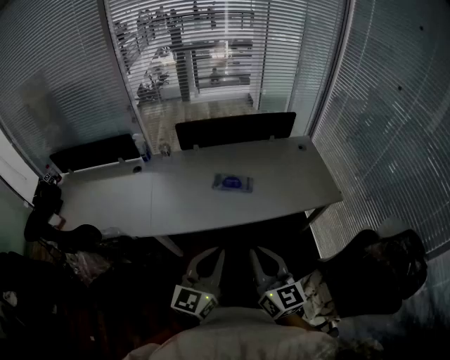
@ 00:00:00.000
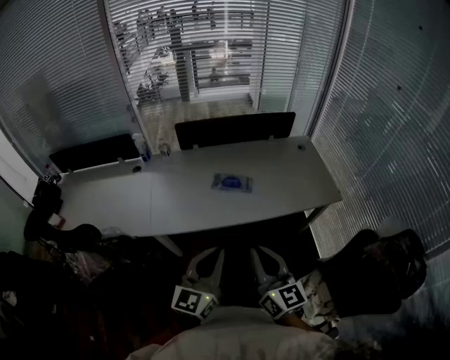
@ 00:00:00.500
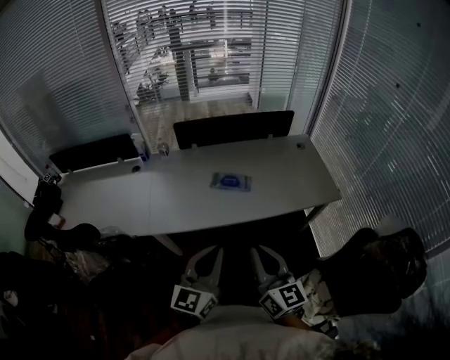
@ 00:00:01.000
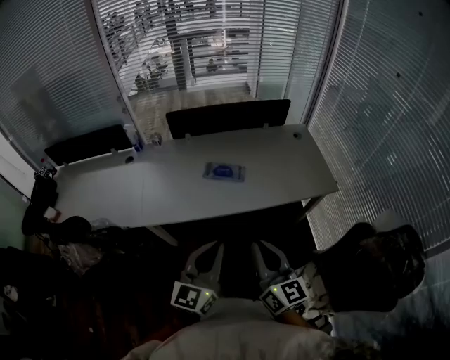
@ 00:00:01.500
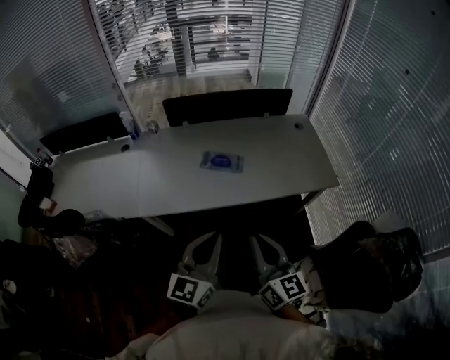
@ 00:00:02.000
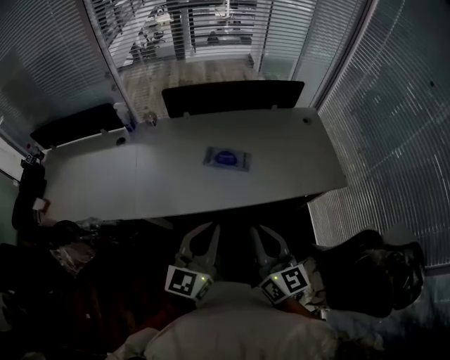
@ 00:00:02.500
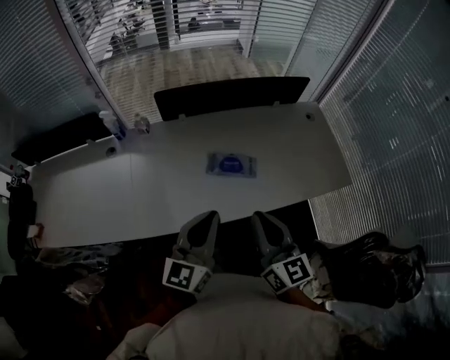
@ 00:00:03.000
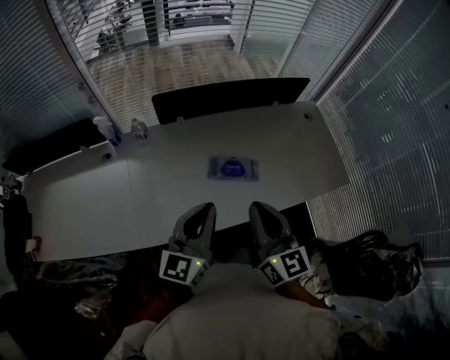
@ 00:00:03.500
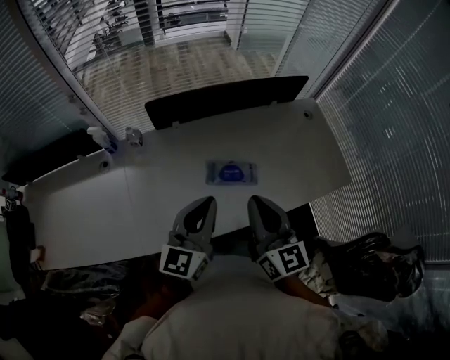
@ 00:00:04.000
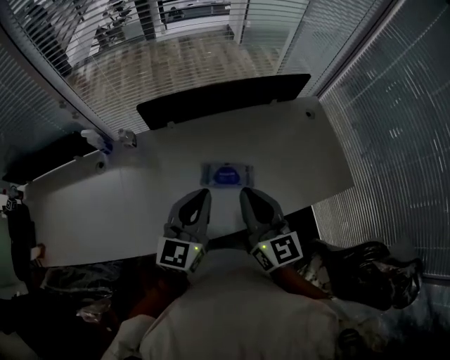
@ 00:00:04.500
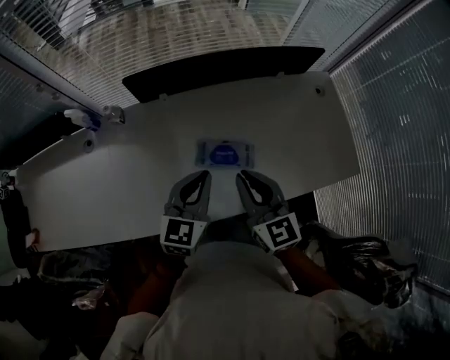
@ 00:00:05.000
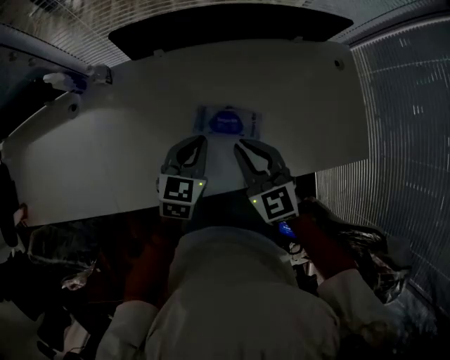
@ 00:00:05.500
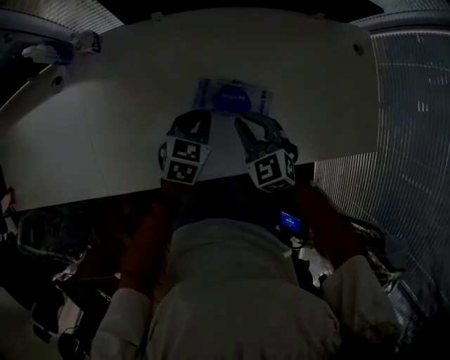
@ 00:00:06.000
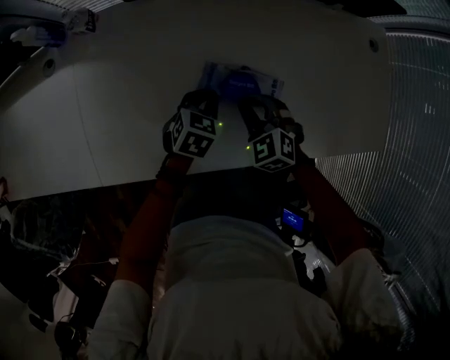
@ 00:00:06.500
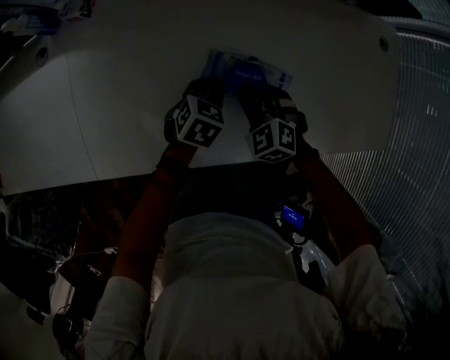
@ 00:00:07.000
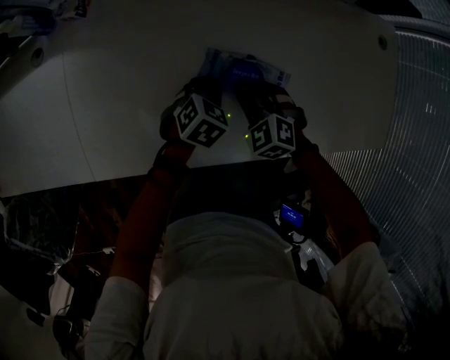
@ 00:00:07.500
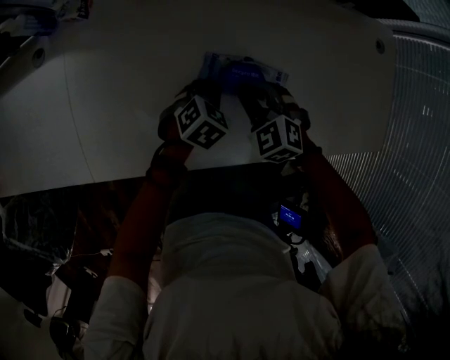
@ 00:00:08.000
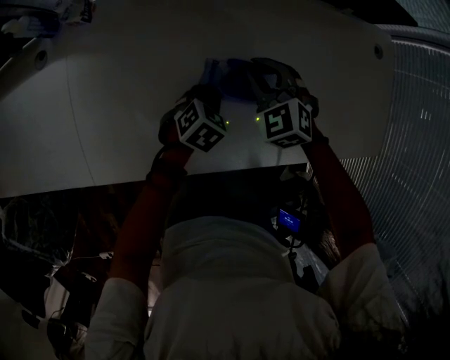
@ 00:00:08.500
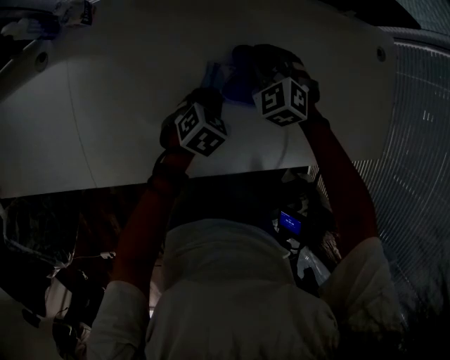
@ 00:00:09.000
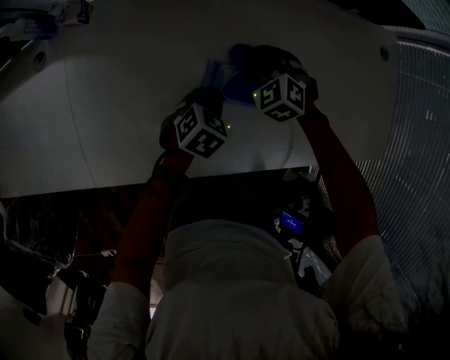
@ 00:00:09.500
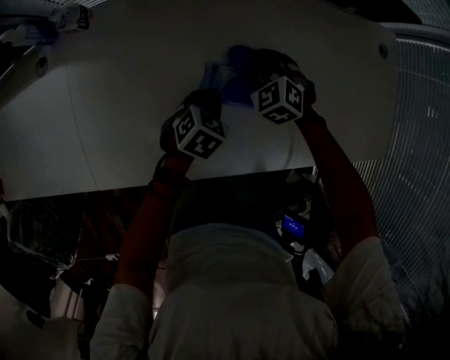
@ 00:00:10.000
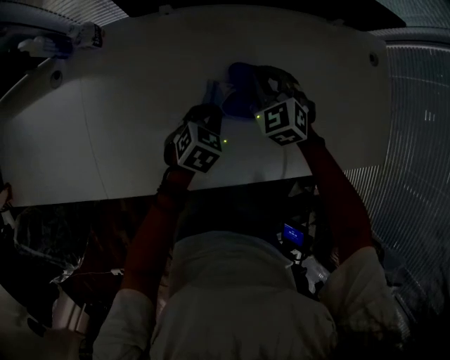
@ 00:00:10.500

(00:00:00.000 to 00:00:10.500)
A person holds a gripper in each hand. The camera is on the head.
00:00:00.000 - 00:00:02.000: The grippers both shift to the right by some 5 cm.
00:00:02.000 - 00:00:04.000: Both grippers move forward and to the left, about 30 cm.
00:00:04.000 - 00:00:06.500: Both grippers move downward, roughly 40 cm. The right gripper points its fingers about 50 degrees further downward; the left gripper points its fingers some 50 degrees further downward.
00:00:06.500 - 00:00:08.500: The right gripper is displaced forward by approximately 10 cm.

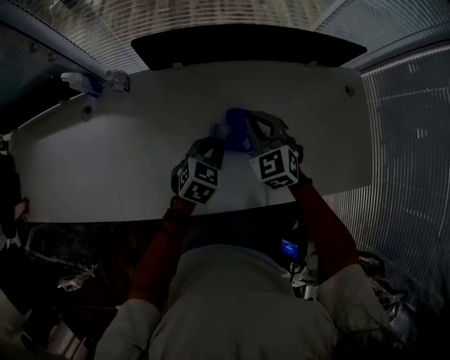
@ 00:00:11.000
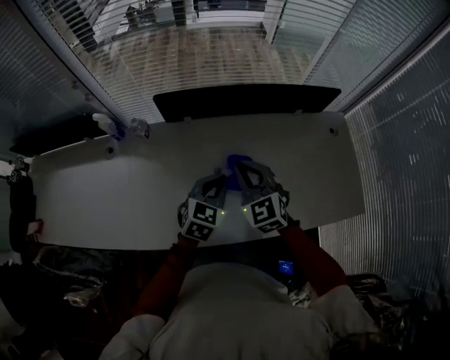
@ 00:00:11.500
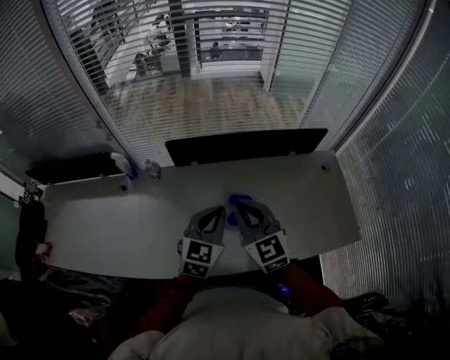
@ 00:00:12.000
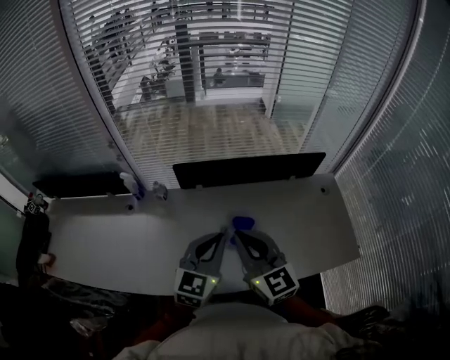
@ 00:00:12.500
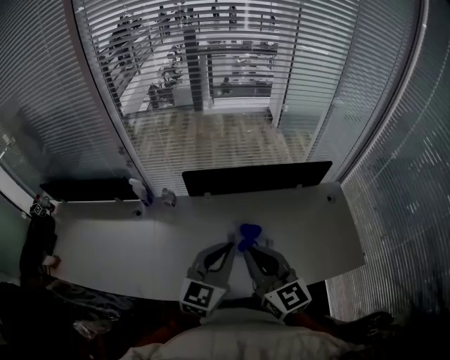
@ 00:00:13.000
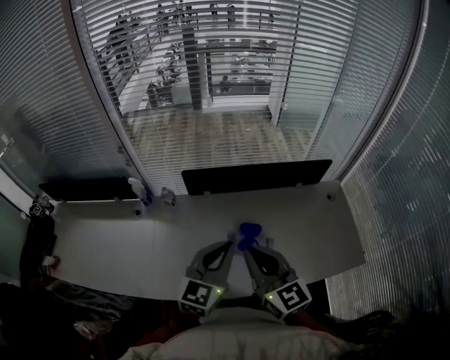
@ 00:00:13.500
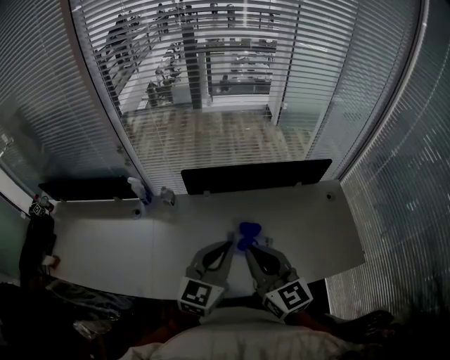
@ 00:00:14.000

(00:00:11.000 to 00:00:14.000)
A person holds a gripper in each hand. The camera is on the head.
00:00:11.000 - 00:00:12.500: The left gripper shifts roughly 30 cm upward, and rotates about 30 degrees; the right gripper shifts roughly 30 cm upward and backward, and swivels approximately 40 degrees.
00:00:12.500 - 00:00:14.000: The grippers move only a little.

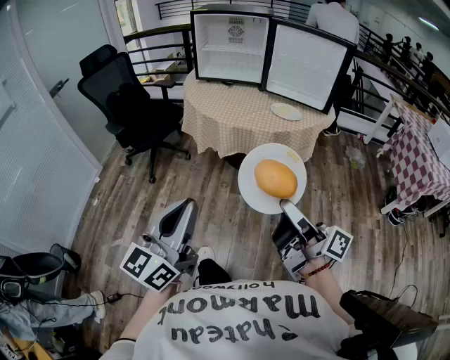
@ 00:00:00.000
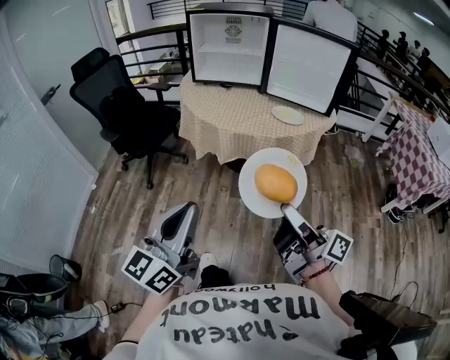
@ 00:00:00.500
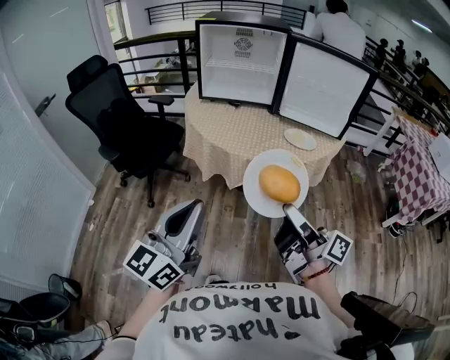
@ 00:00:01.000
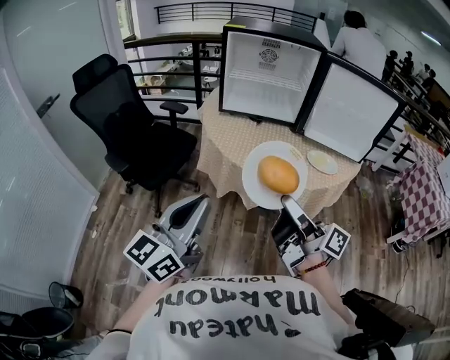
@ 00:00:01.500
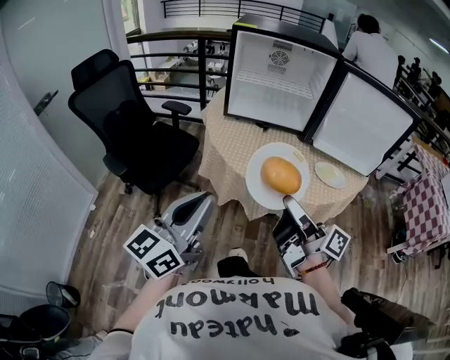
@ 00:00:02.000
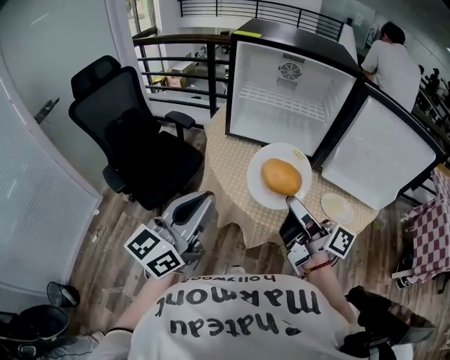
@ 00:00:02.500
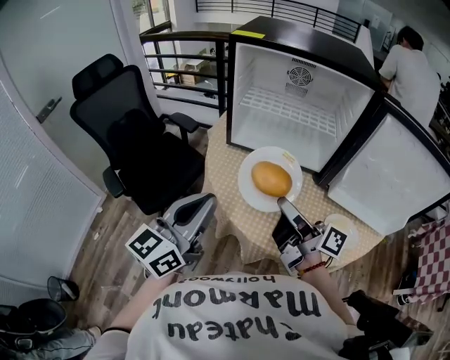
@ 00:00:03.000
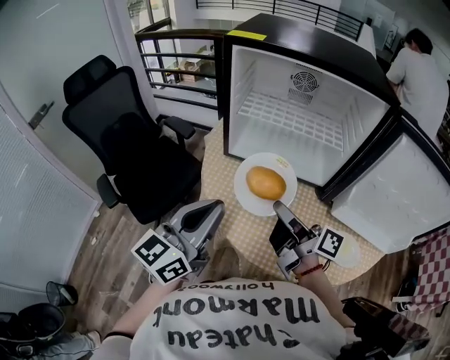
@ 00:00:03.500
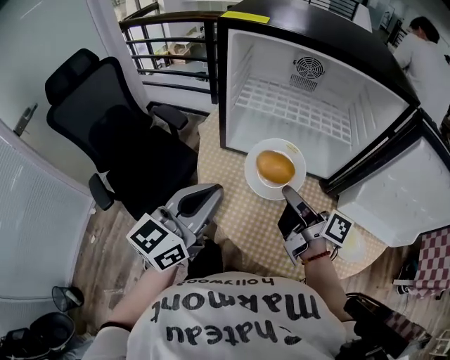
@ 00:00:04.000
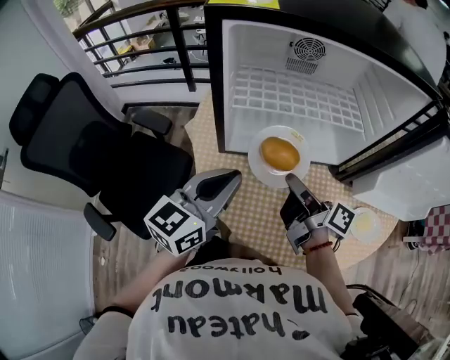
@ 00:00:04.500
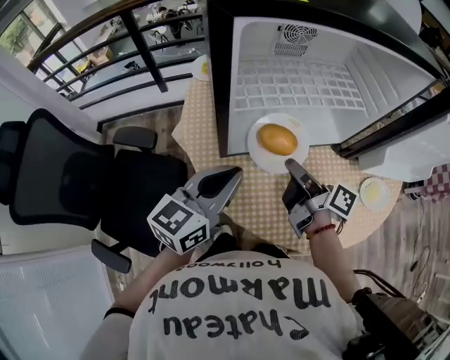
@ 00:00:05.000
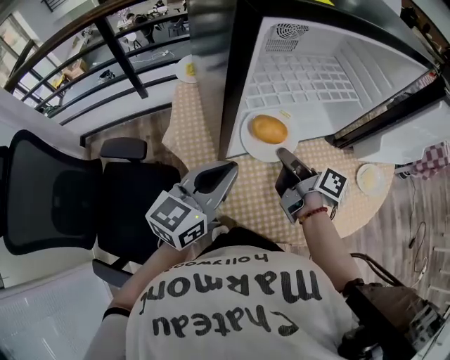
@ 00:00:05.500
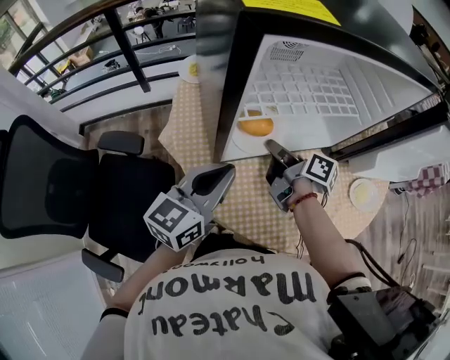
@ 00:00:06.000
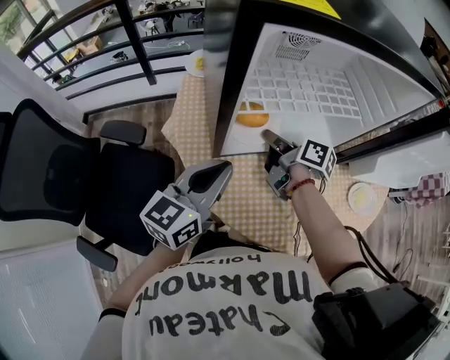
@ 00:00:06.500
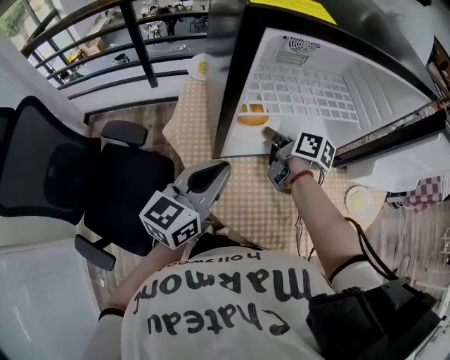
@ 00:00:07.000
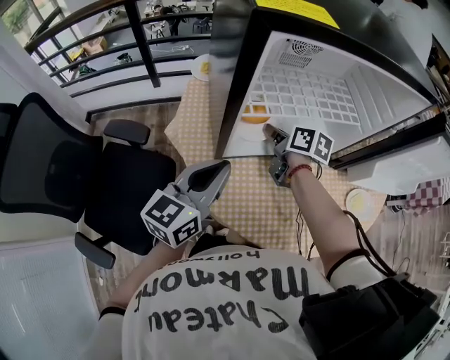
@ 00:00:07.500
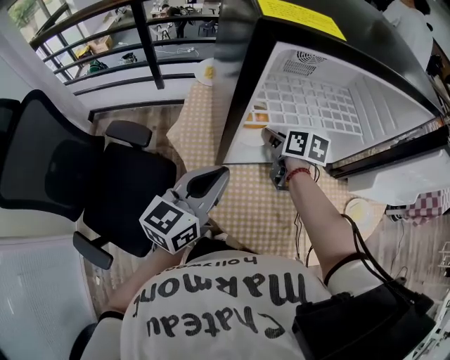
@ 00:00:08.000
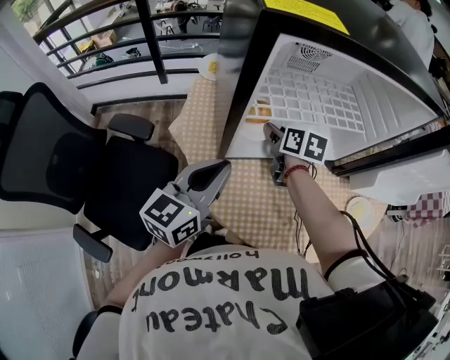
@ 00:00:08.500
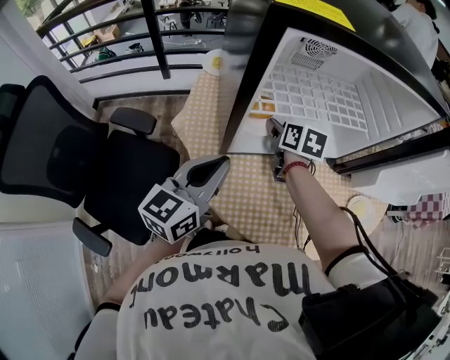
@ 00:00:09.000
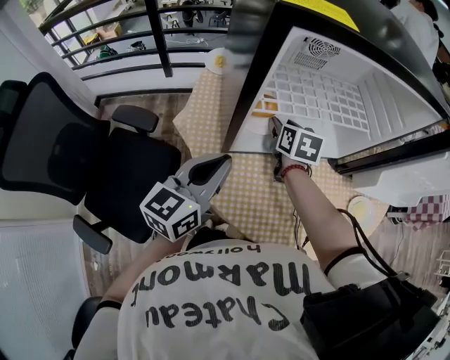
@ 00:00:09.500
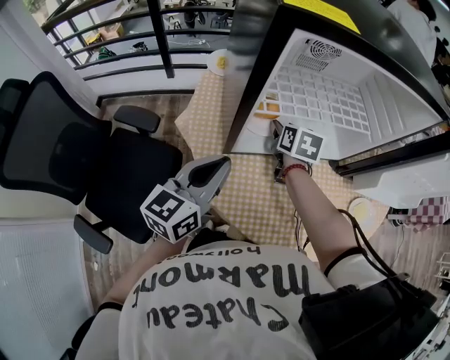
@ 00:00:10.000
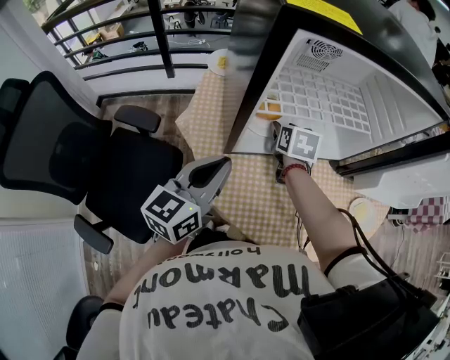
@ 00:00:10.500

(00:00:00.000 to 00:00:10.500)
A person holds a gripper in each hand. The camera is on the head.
00:00:00.000 - 00:00:02.000: The grippers both shift forward and to the left by approximately 40 cm.
00:00:02.000 - 00:00:04.000: The grippers both shift forward by some 35 cm.
00:00:04.000 - 00:00:06.500: The right gripper changes place by about 20 cm, and rotates approximately 30 degrees. Meanwhile the left gripper ends up some 20 cm from where it was, and turns by approximately 30 degrees.
00:00:06.500 - 00:00:08.500: The right gripper rotates approximately 40 degrees, and opens its fingers.
00:00:08.500 - 00:00:10.500: There are only small adjustments of the grippers.

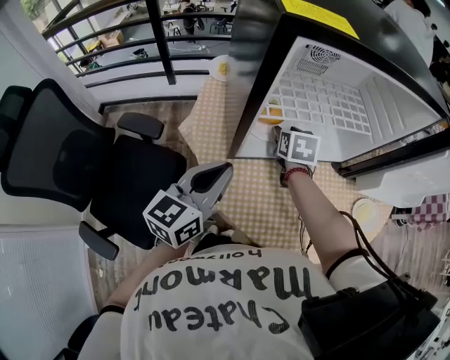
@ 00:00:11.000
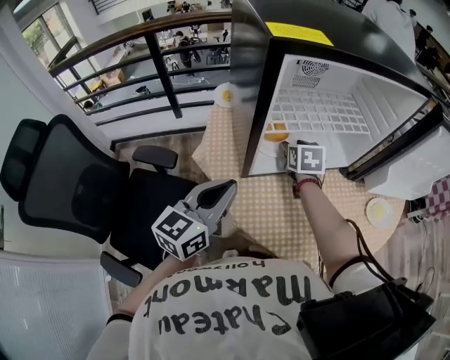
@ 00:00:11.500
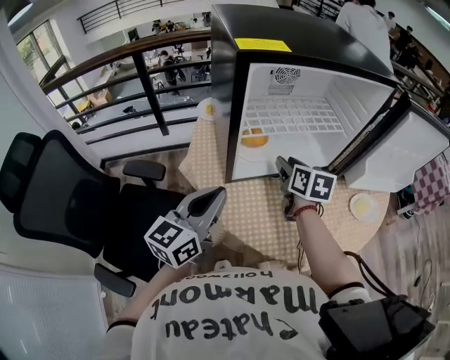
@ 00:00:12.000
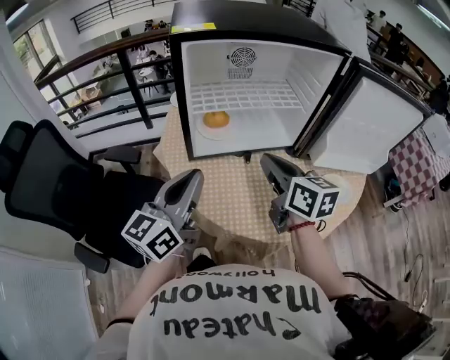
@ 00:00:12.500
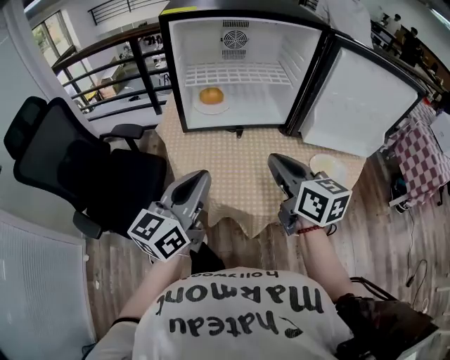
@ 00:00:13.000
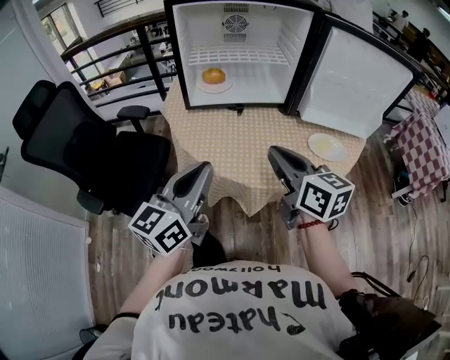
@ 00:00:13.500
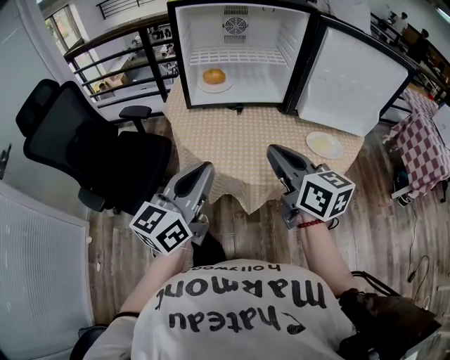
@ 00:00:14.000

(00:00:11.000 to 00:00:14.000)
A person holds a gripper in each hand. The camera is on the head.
00:00:11.000 - 00:00:12.500: The right gripper travels backward, upward and to the right by roughly 30 cm, angles its fingers upward, by roughly 30 degrees, and closes up. Meanwhile the left gripper heads backward, upward and to the right, covering approximately 15 cm.
00:00:12.500 - 00:00:14.000: The left gripper heads backward and to the right, covering some 20 cm; the right gripper shifts about 20 cm backward.
